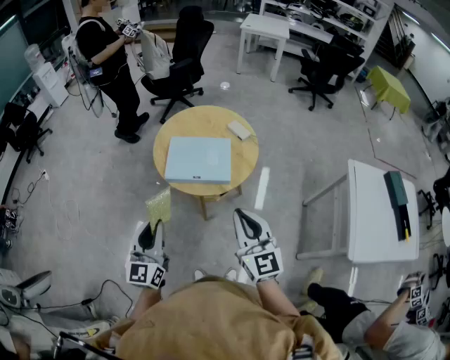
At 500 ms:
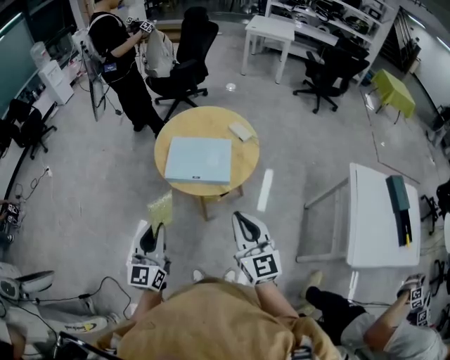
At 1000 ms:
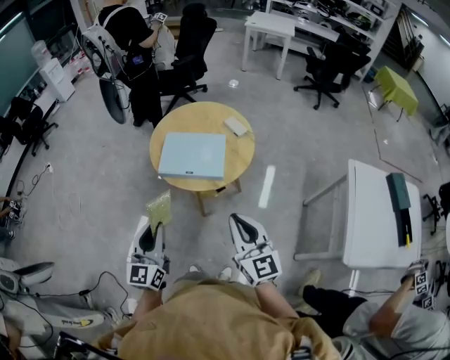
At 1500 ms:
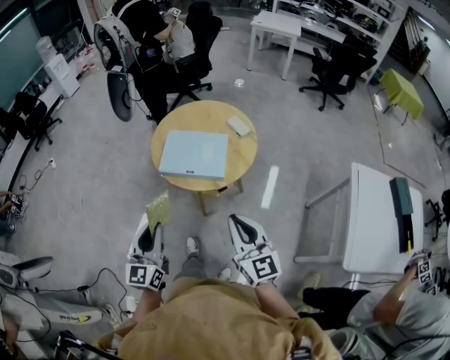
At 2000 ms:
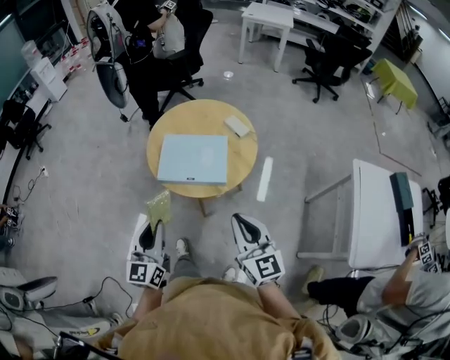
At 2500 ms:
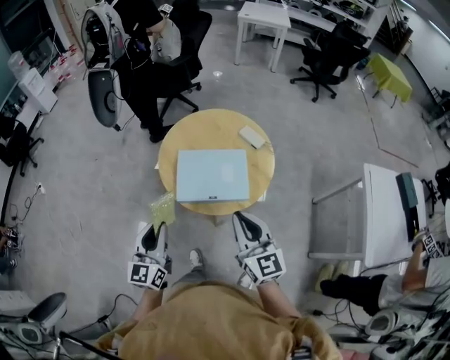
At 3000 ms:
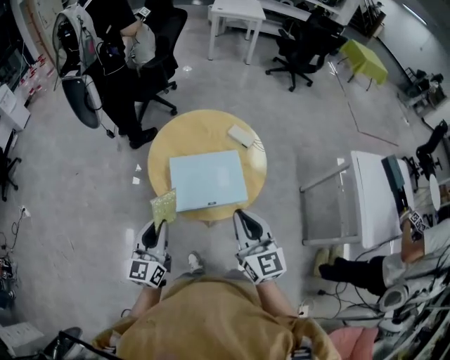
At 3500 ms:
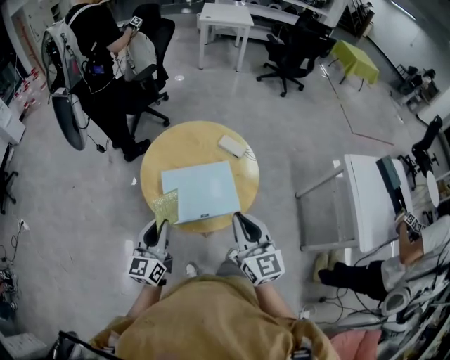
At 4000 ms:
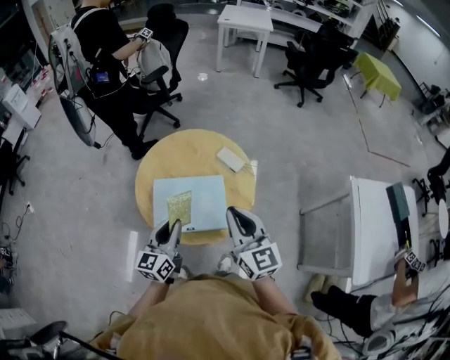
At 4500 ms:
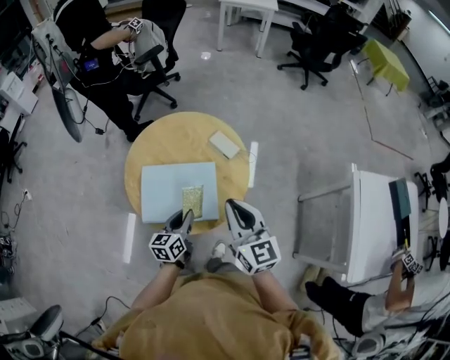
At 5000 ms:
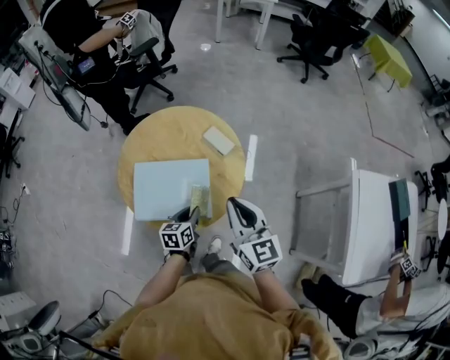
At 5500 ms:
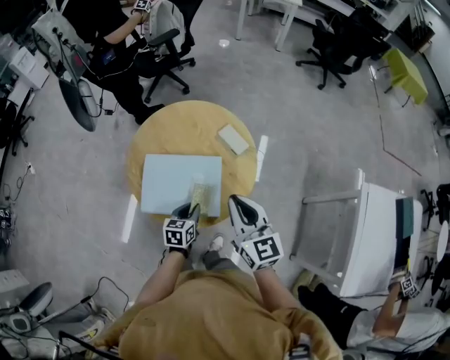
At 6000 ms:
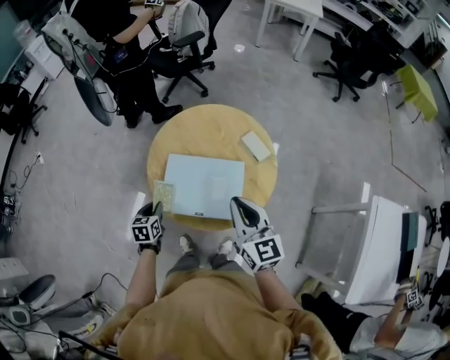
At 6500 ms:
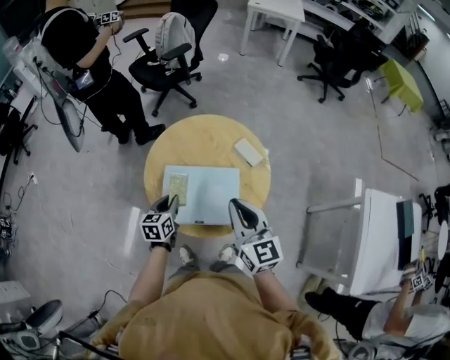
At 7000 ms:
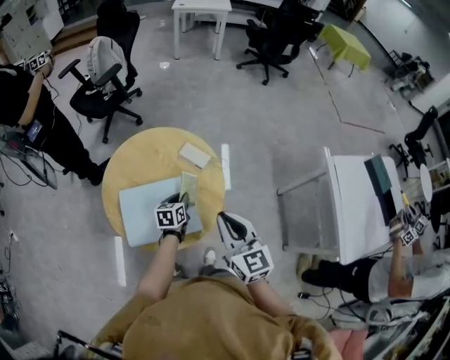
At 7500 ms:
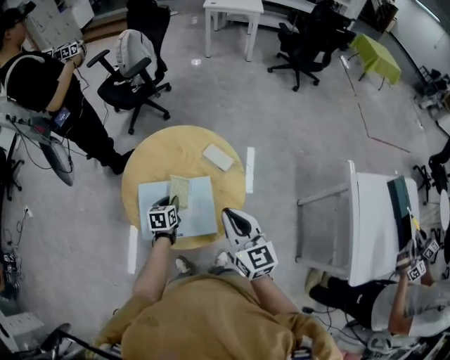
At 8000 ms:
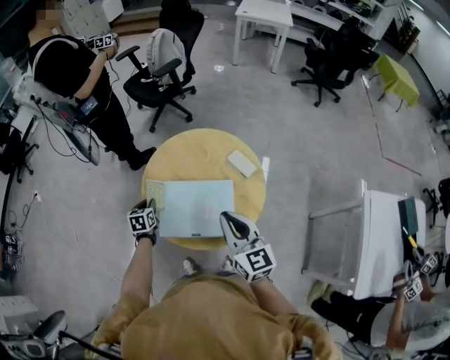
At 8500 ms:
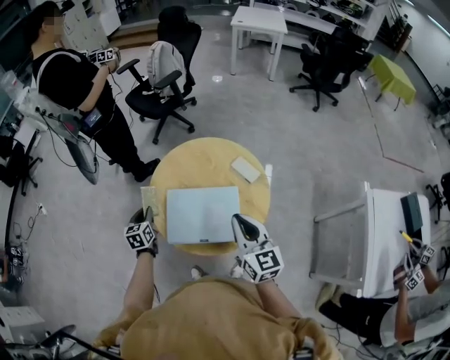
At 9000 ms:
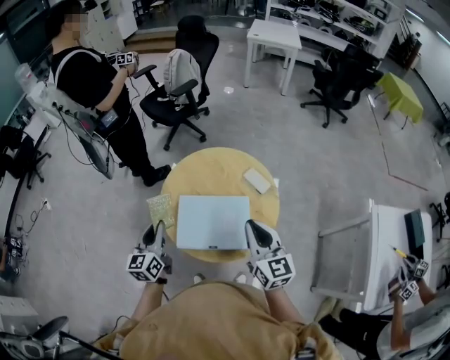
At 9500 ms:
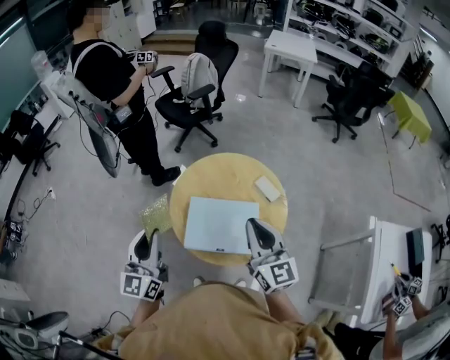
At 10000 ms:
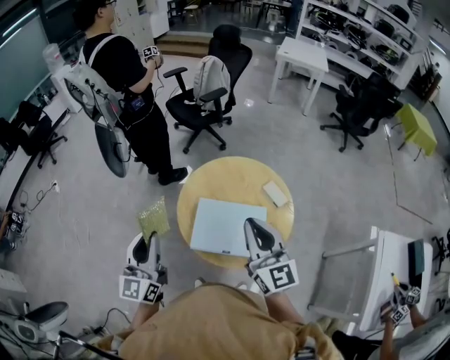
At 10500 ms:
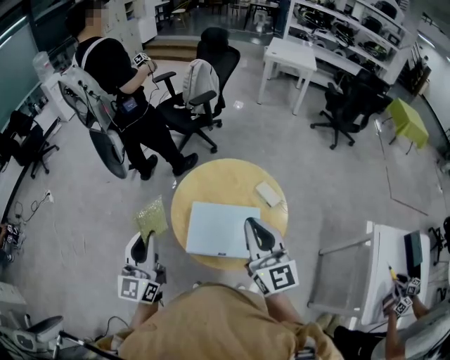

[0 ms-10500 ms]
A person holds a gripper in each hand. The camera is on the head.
0 ms to 2000 ms: The right gripper ends up about 5 cm from where it was; the left gripper ends up some 5 cm from where it was.
2000 ms to 4000 ms: The grippers both shift forward by approximately 25 cm. The left gripper swivels roughly 20 degrees.
4000 ms to 6500 ms: The left gripper moves left and right over roughly 25 cm, changing direction 2 times, and turns by roughly 30 degrees. Meanwhile the right gripper reaches some 10 cm to the right, then returns.
8500 ms to 10500 ms: The right gripper heads upward and to the left, covering some 15 cm; the left gripper moves upward and backward, roughly 30 cm, and points its fingers about 40 degrees further upward.

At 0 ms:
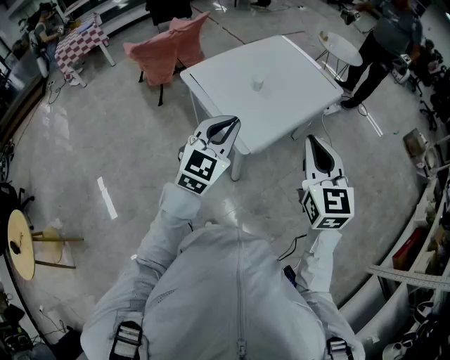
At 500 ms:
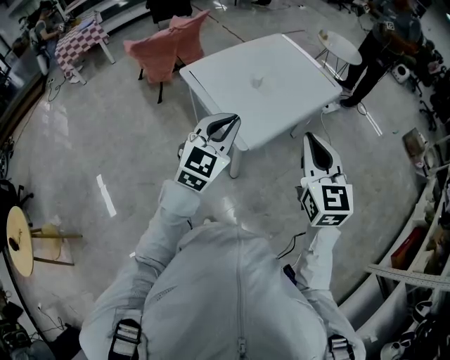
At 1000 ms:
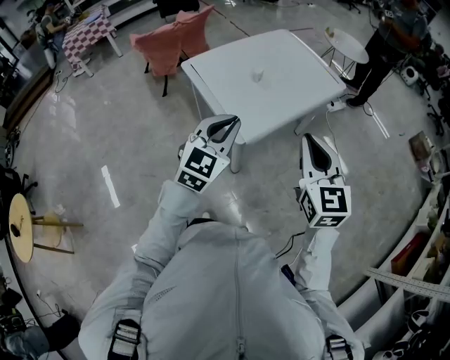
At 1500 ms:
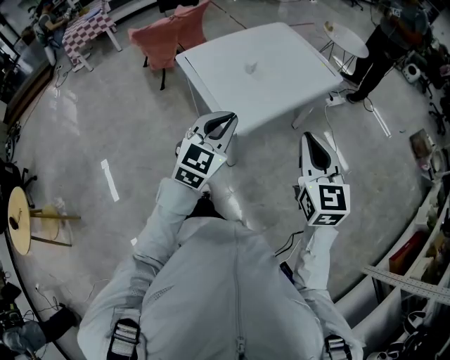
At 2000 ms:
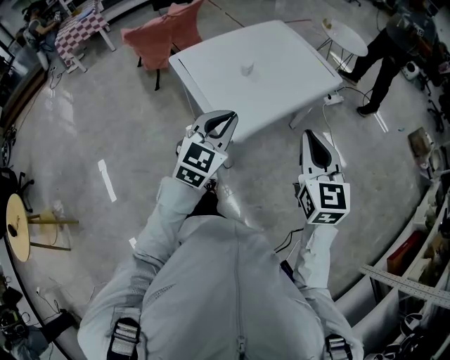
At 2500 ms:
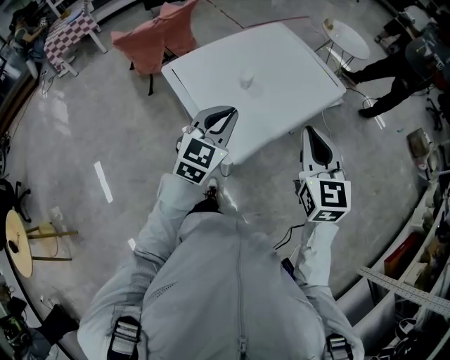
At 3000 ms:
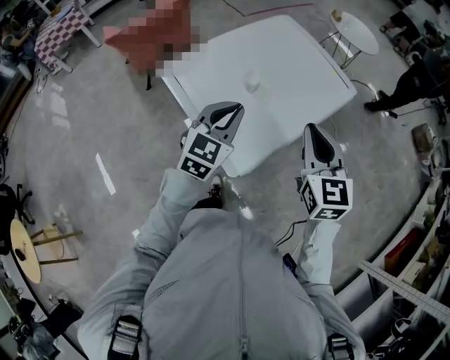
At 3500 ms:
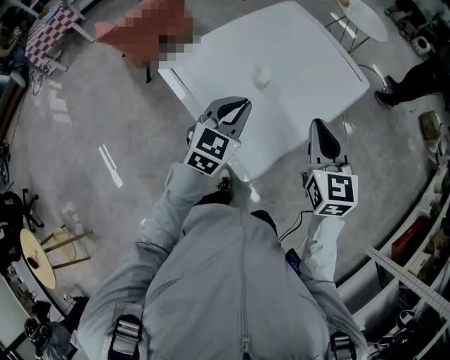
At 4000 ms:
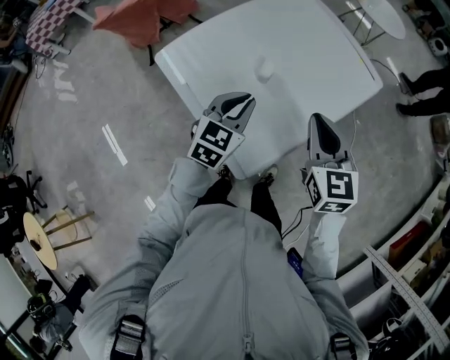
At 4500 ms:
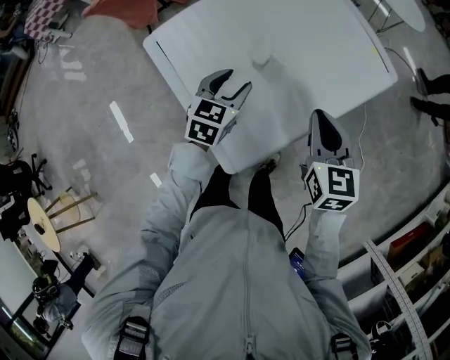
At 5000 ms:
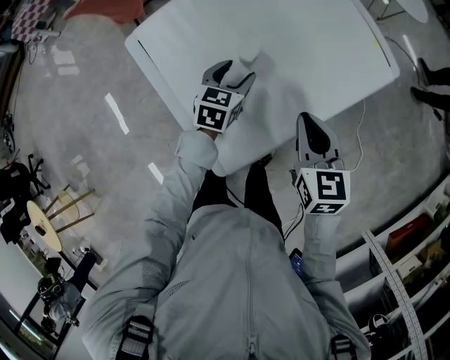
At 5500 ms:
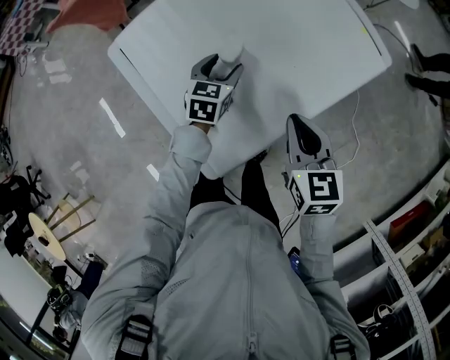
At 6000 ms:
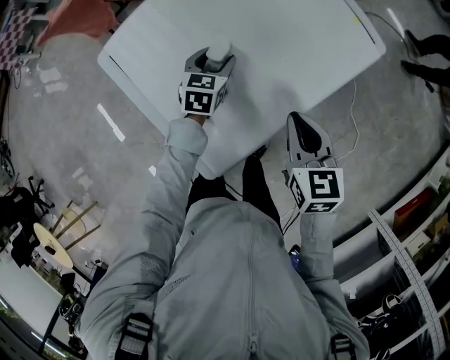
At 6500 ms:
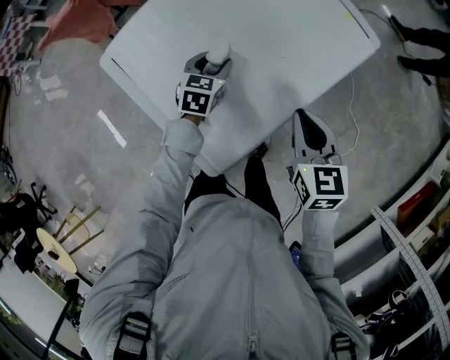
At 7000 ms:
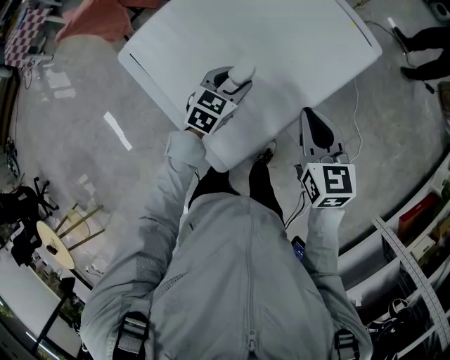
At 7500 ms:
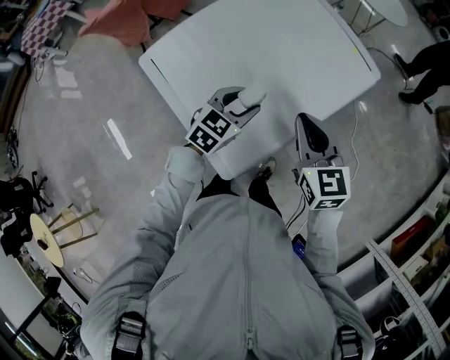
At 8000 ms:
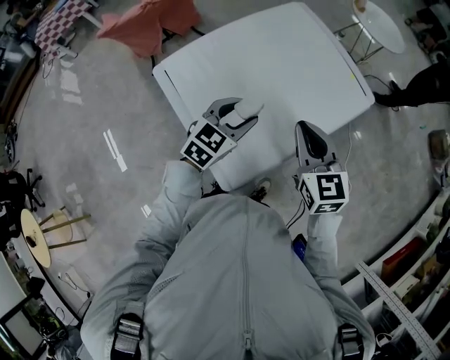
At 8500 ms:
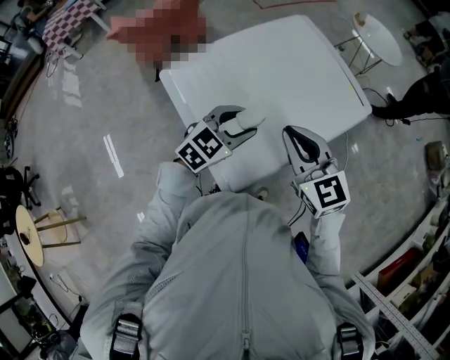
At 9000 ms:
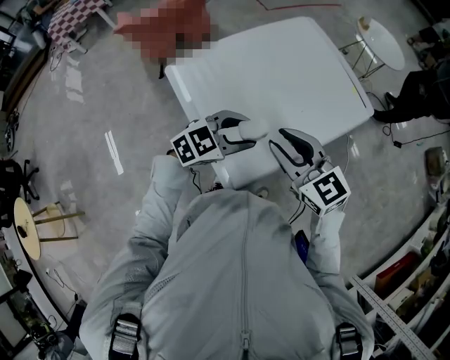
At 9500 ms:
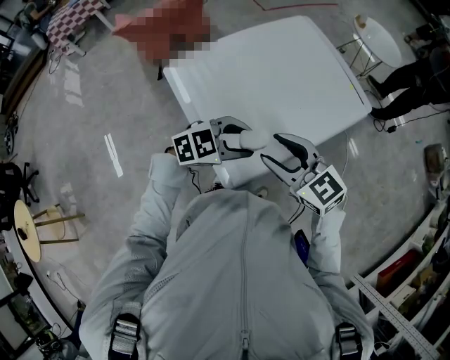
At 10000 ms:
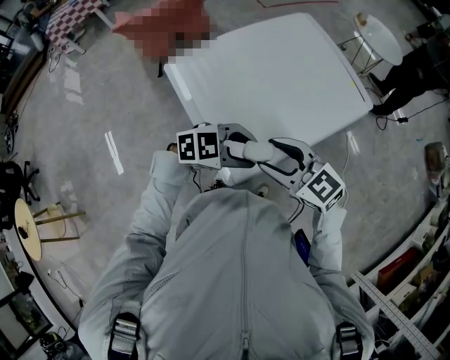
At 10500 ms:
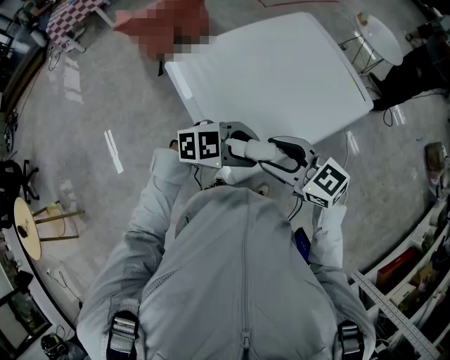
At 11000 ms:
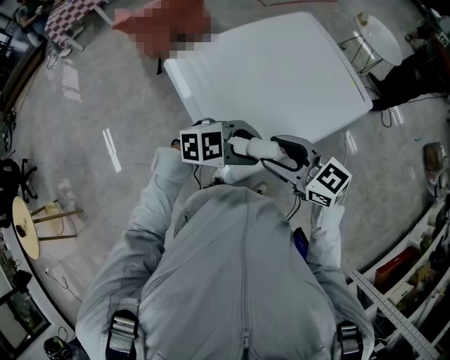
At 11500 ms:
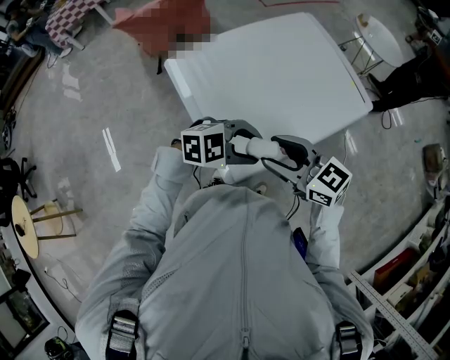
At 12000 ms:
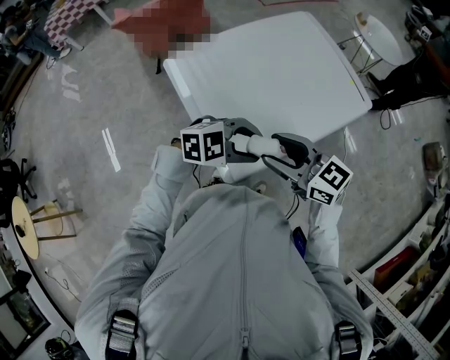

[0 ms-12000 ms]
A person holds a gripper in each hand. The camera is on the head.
0 ms to 2000 ms: The left gripper travels to the right and downward by roughly 10 cm, while the right gripper goes some 10 cm to the right.
2000 ms to 4000 ms: The right gripper shifts roughly 30 cm forward, while the left gripper moves forward and downward, some 35 cm.
4000 ms to 6000 ms: The left gripper shifts approximately 25 cm downward and forward, and opens; the right gripper is displaced downward and to the right by about 15 cm.
6000 ms to 8000 ms: The right gripper travels upward by some 15 cm, and changes its angle by some 20 degrees; the left gripper shifts about 25 cm upward and backward, and swivels roughly 20 degrees.
8000 ms to 10000 ms: The left gripper changes place by roughly 15 cm, and turns by roughly 40 degrees. Meanwhile the right gripper changes place by some 15 cm, turns by about 40 degrees, and opens.
10000 ms to 12000 ms: The grippers move only a little.

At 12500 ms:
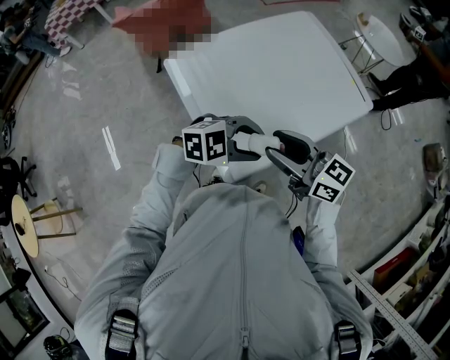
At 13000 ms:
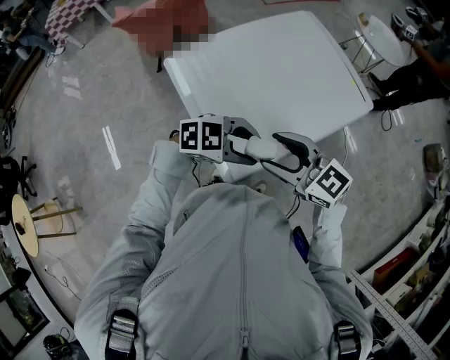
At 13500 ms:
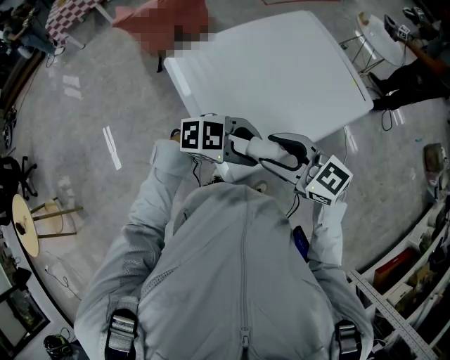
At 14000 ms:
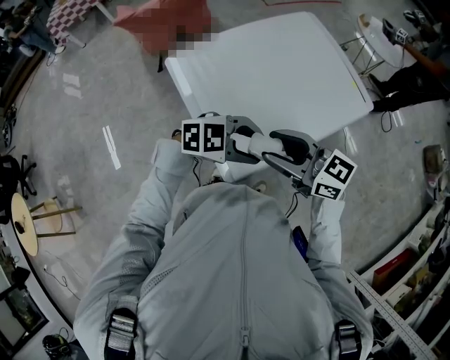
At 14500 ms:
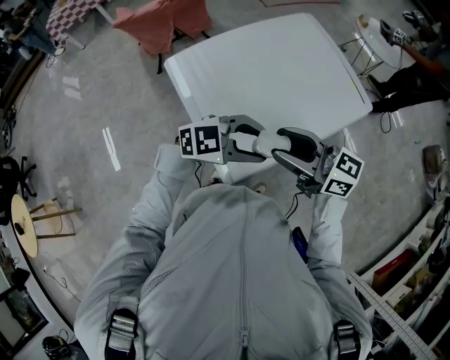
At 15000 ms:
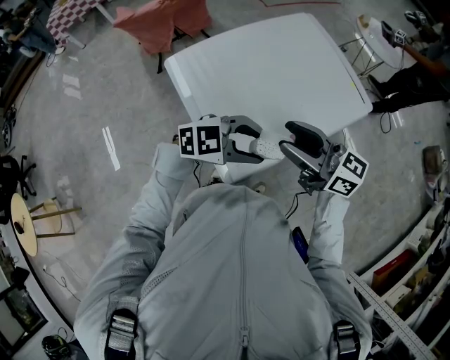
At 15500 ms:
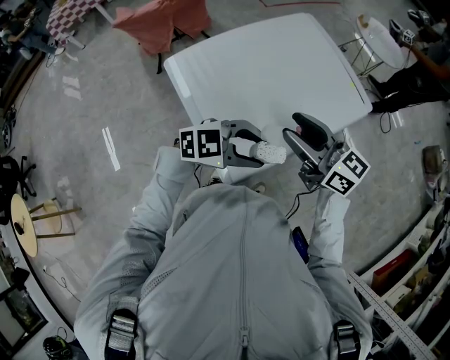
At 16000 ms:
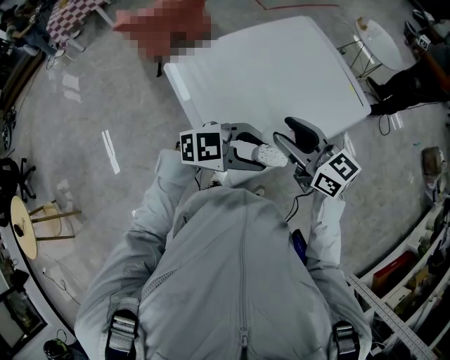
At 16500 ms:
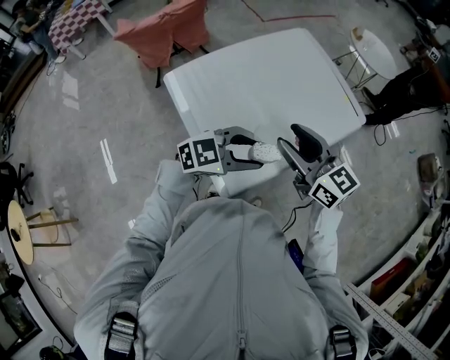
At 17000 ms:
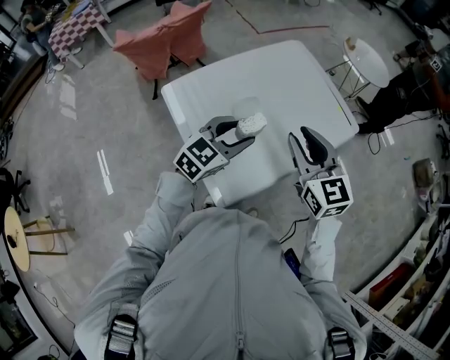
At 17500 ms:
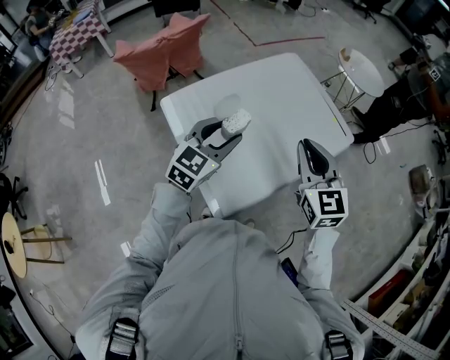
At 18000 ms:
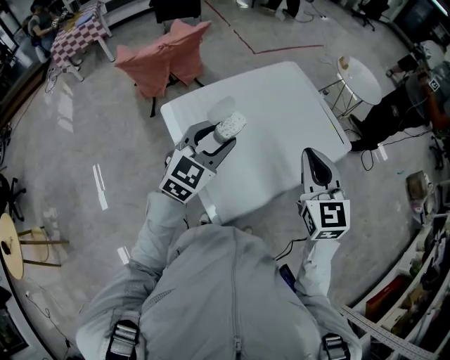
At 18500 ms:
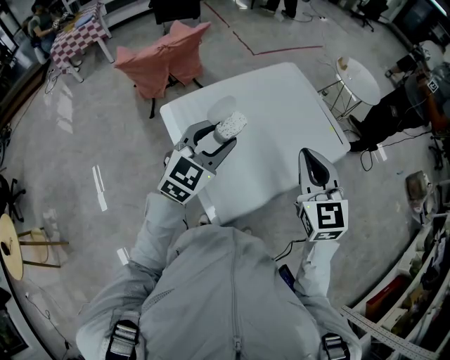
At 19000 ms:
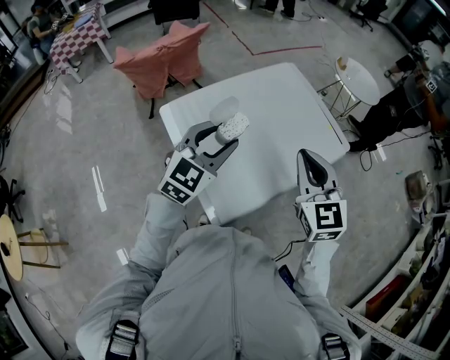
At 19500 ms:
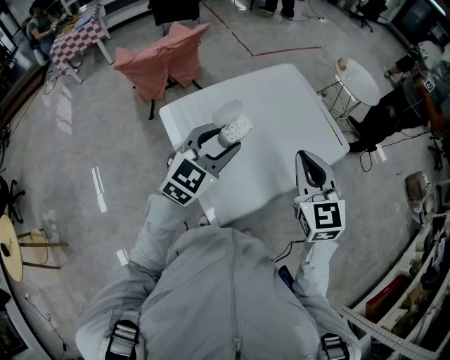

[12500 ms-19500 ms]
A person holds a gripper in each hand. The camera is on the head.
14500 ms to 16000 ms: The right gripper moves approximately 5 cm.
16000 ms to 17500 ms: The left gripper moves some 15 cm, and rotates approximately 50 degrees; the right gripper changes place by about 10 cm, rotates some 40 degrees, and closes.
17500 ms to 19500 ms: The left gripper shifts by roughly 5 cm.
